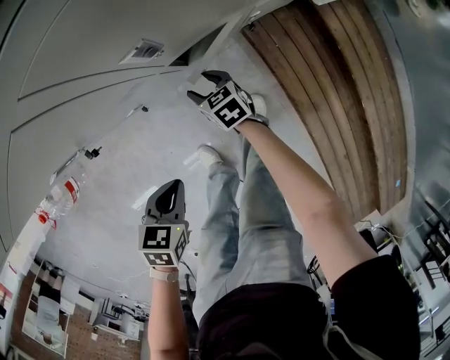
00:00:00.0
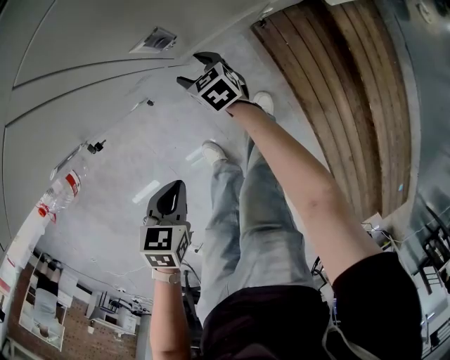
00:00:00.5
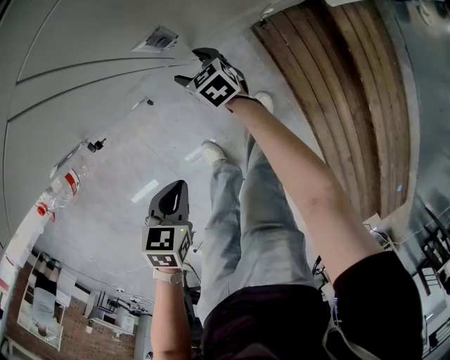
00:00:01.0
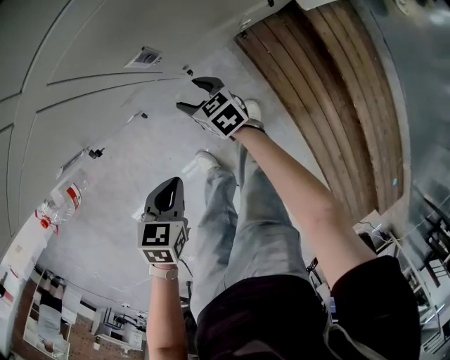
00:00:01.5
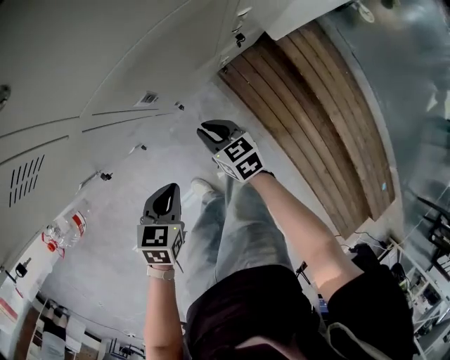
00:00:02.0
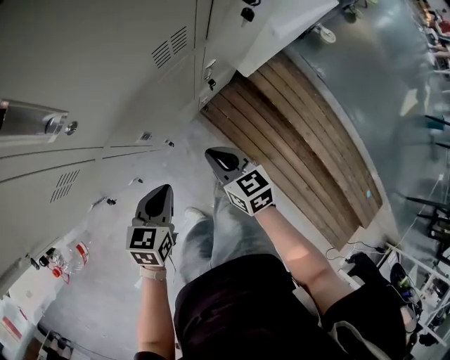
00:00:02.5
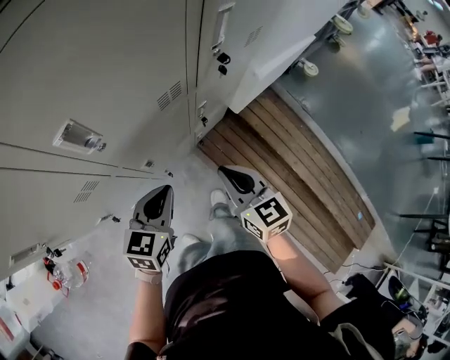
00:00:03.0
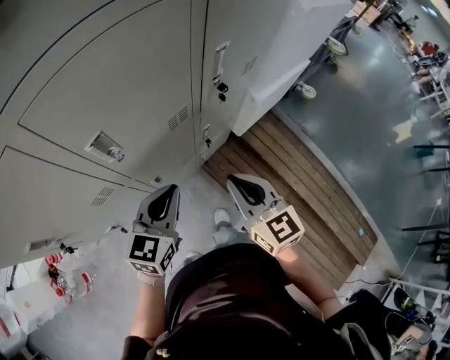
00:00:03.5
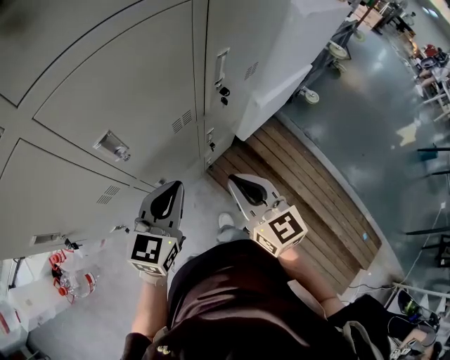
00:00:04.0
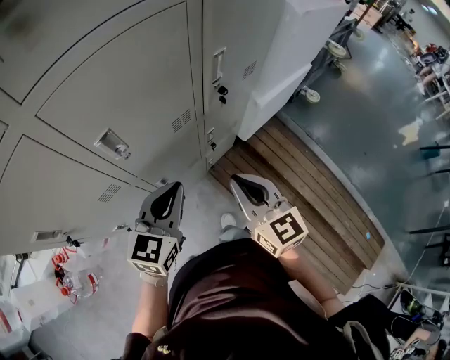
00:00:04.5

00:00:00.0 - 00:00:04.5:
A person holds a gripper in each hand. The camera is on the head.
00:00:00.0 - 00:00:02.0: The right gripper moves upward, roughly 15 cm, and closes, while the left gripper travels upward and forward by approximately 10 cm.
00:00:02.0 - 00:00:04.5: The grippers both shift upward by some 40 cm. The right gripper turns by about 40 degrees. The left gripper points its fingers roughly 40 degrees further upward.

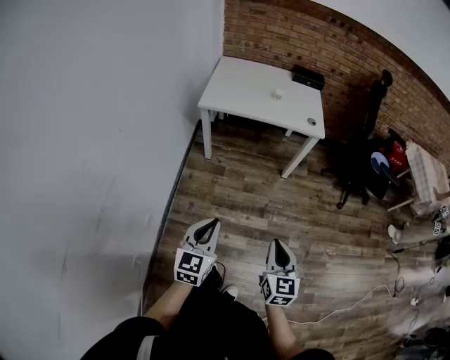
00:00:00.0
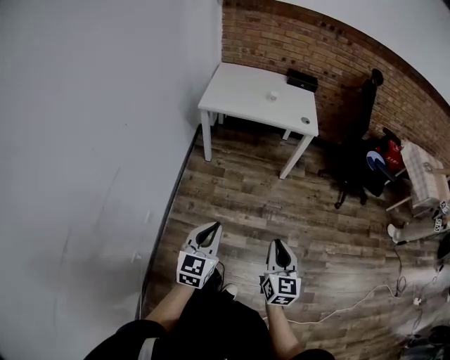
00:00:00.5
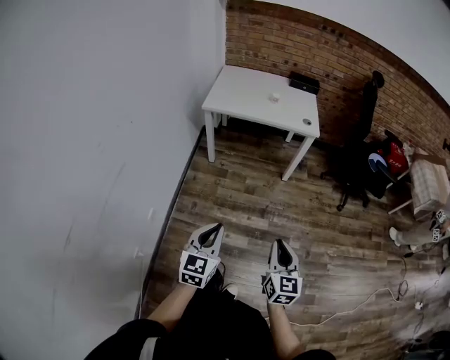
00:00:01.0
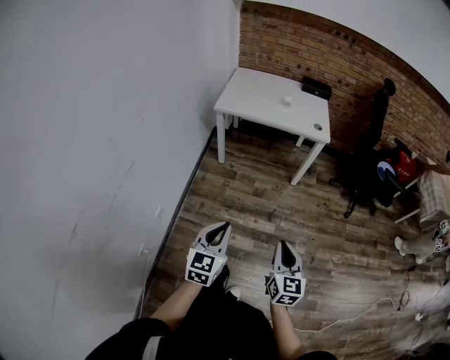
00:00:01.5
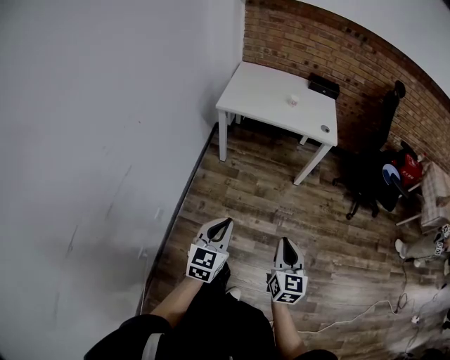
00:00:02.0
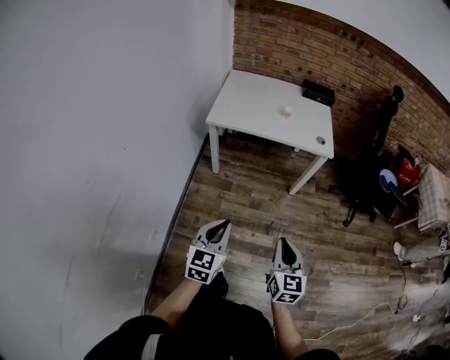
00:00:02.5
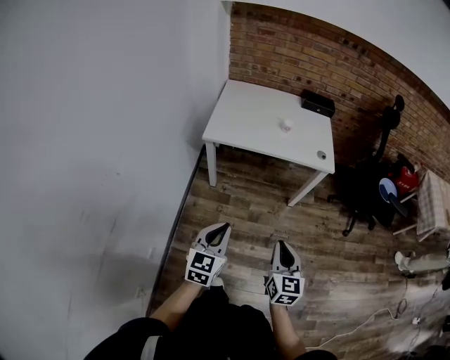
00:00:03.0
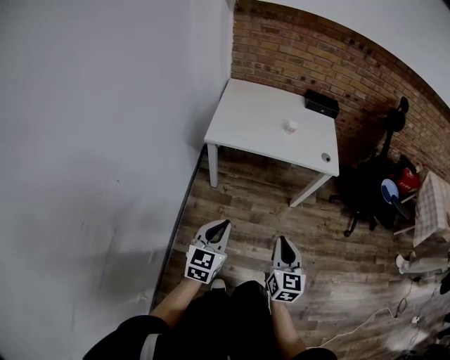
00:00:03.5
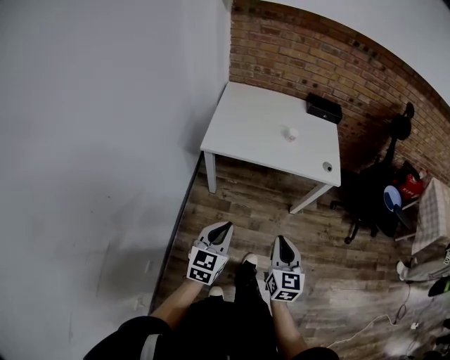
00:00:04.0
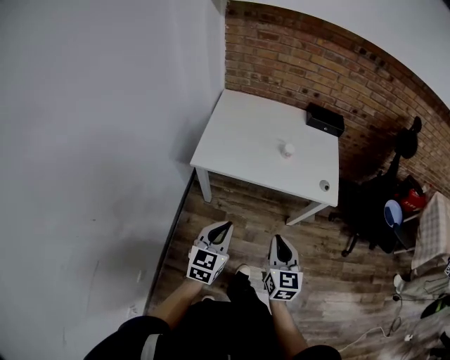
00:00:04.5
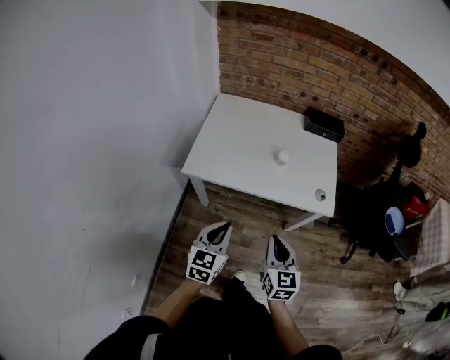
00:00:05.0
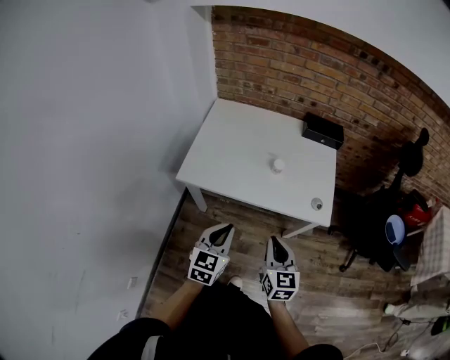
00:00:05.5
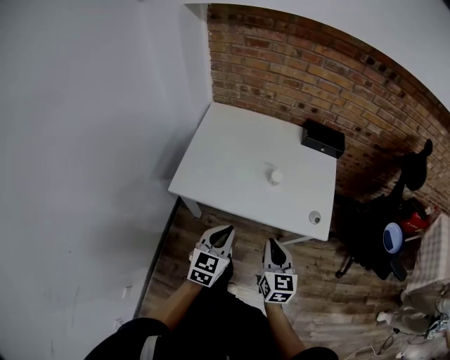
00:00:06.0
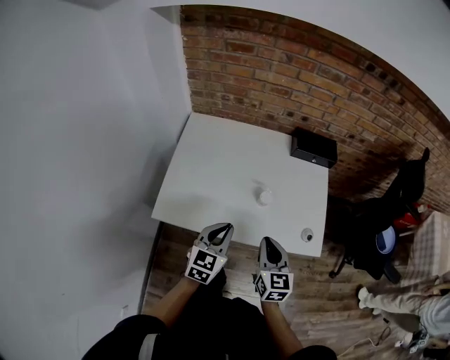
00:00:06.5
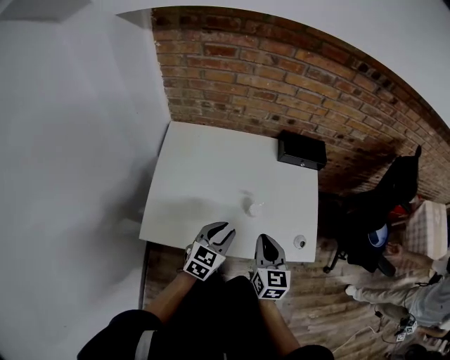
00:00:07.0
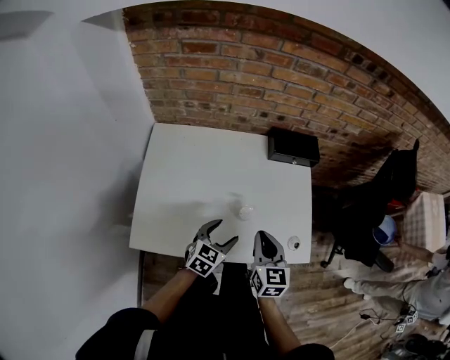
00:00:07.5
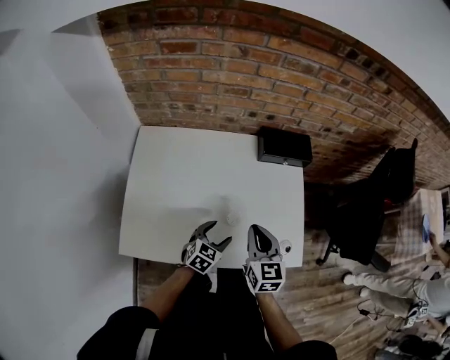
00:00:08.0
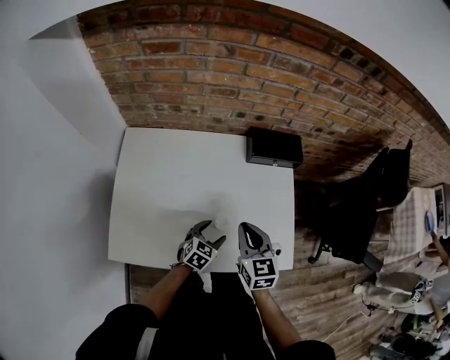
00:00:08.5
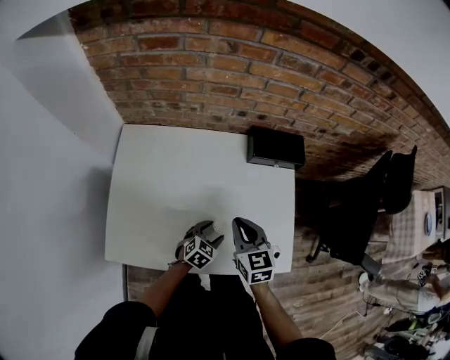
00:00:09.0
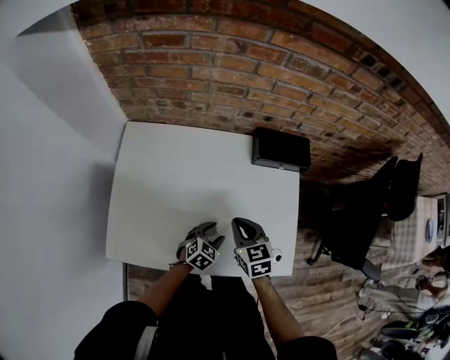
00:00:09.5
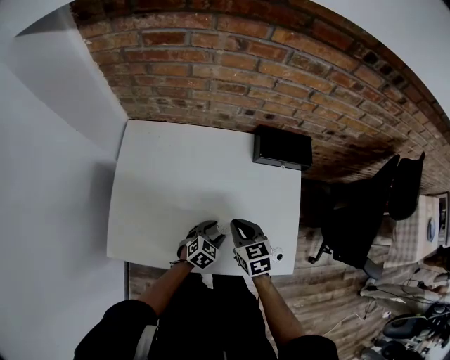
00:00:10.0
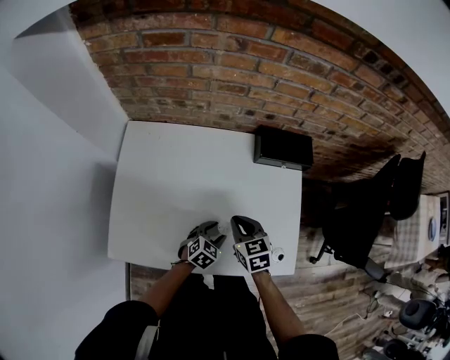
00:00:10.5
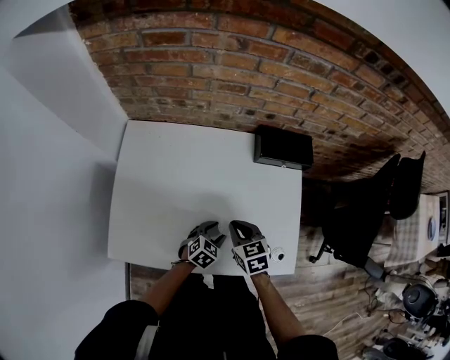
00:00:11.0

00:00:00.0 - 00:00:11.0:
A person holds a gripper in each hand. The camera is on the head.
00:00:00.0 - 00:00:02.0: The left gripper goes backward and returns, roughly 10 cm each way, while the right gripper travels backward and back again, roughly 10 cm each way.
00:00:02.0 - 00:00:03.5: The two grippers go some 25 cm forward.
00:00:03.5 - 00:00:05.5: The left gripper travels forward and to the right by some 30 cm; the right gripper travels forward by roughly 30 cm.
00:00:05.5 - 00:00:07.5: The grippers both shift forward by approximately 30 cm. The left gripper rotates roughly 30 degrees, and opens.
00:00:07.5 - 00:00:09.0: The left gripper moves downward and forward, some 15 cm. The right gripper moves forward, about 10 cm.
00:00:09.0 - 00:00:11.0: The right gripper is displaced downward by roughly 10 cm.

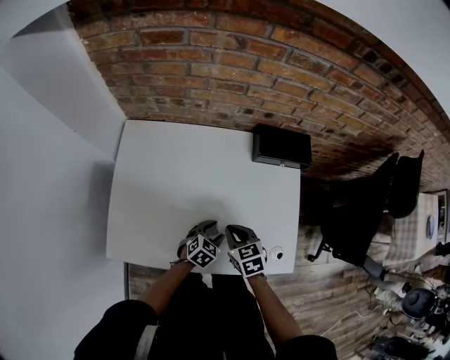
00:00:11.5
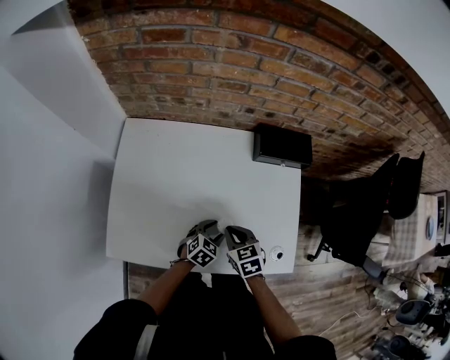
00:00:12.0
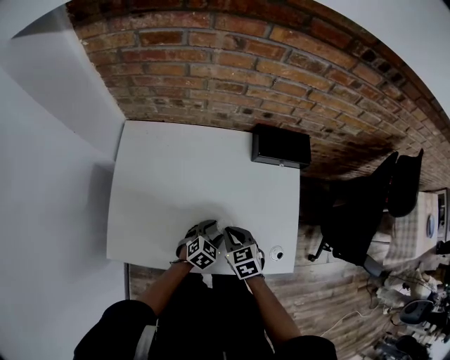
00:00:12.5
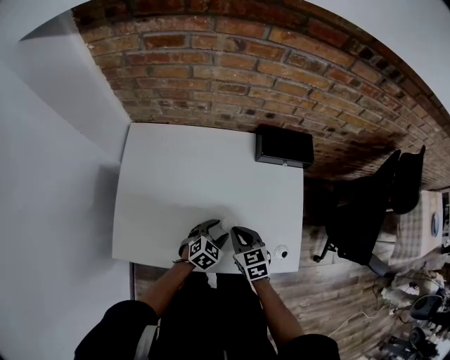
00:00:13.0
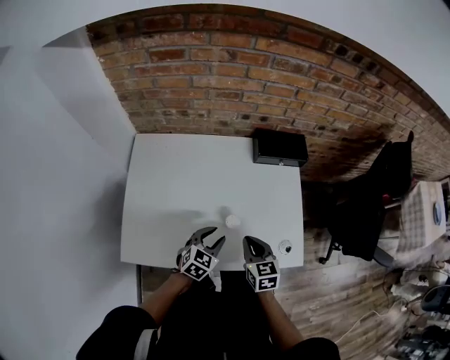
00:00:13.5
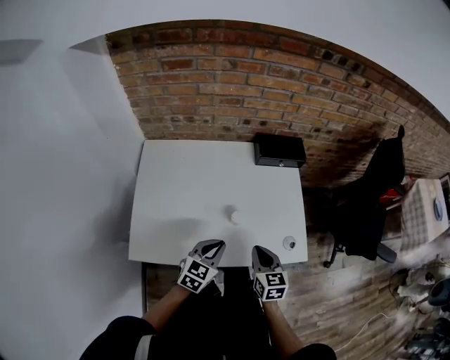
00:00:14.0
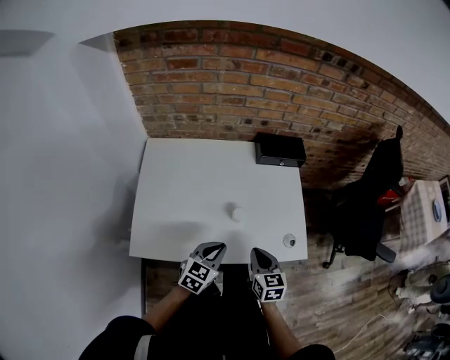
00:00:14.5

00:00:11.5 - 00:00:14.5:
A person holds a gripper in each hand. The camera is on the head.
00:00:11.5 - 00:00:13.0: The grippers make only small movements.
00:00:13.0 - 00:00:14.5: The right gripper travels backward, to the right and upward by about 15 cm, and turns by about 20 degrees. Meanwhile the left gripper heads backward and upward, covering some 20 cm, and closes up.

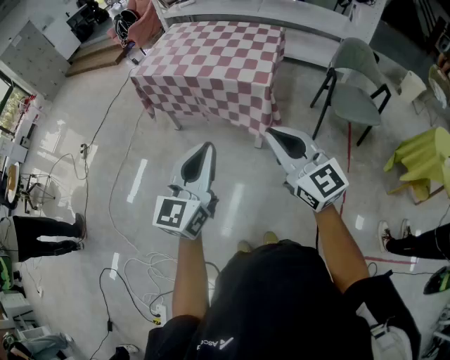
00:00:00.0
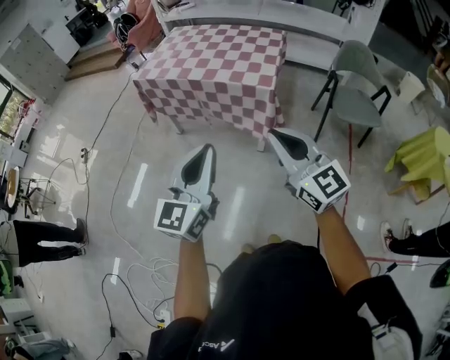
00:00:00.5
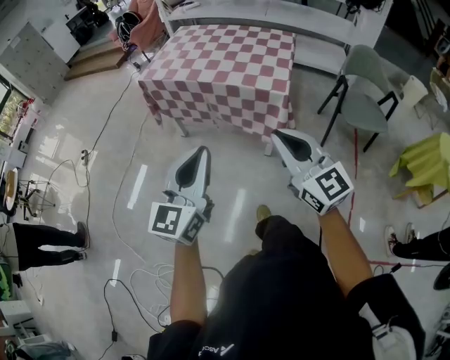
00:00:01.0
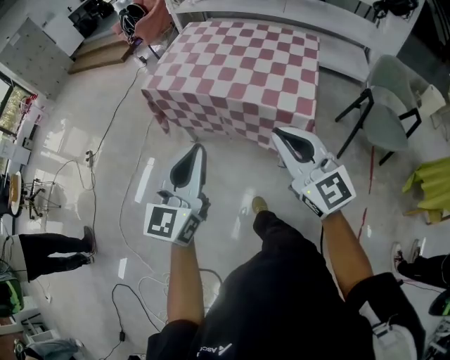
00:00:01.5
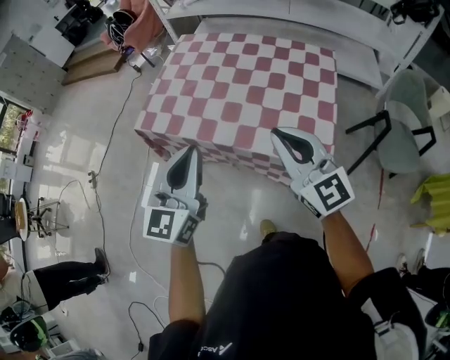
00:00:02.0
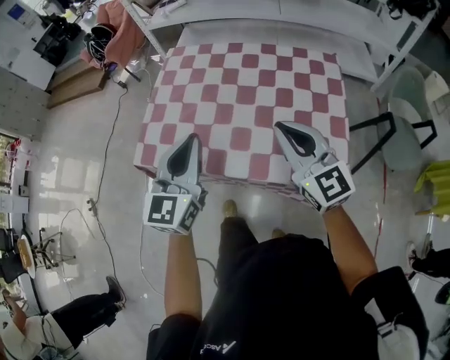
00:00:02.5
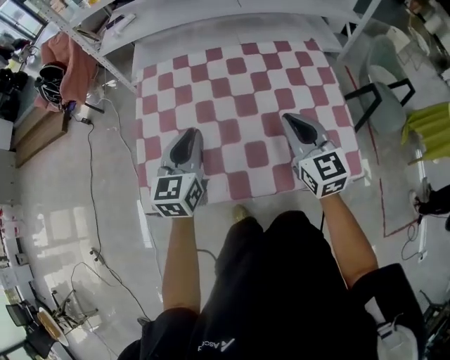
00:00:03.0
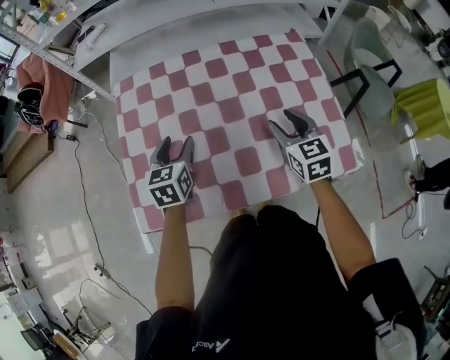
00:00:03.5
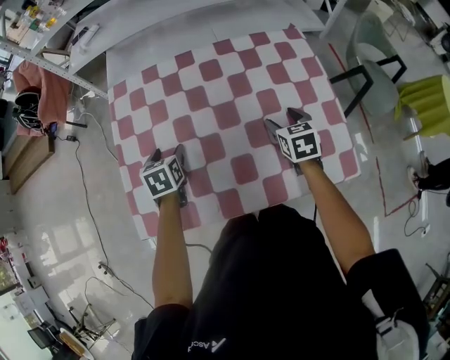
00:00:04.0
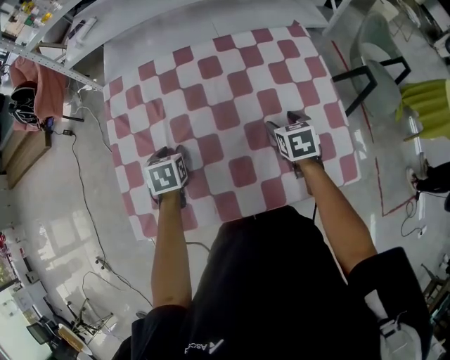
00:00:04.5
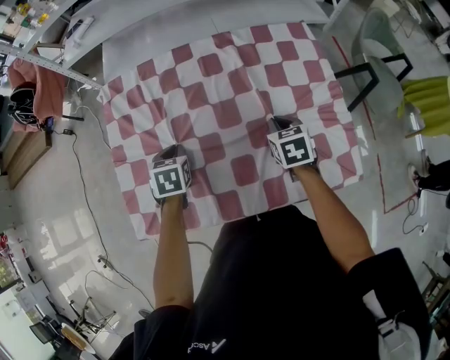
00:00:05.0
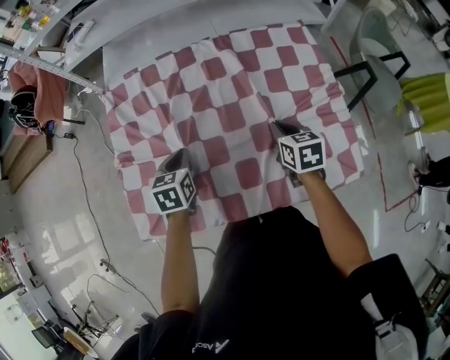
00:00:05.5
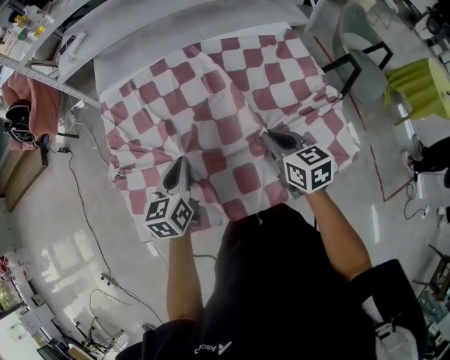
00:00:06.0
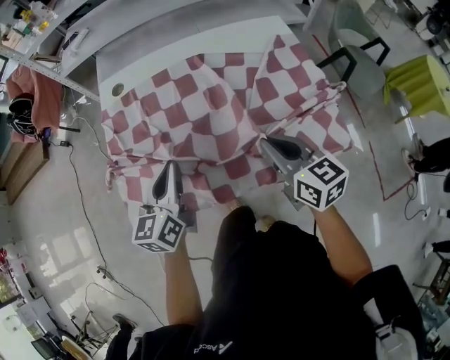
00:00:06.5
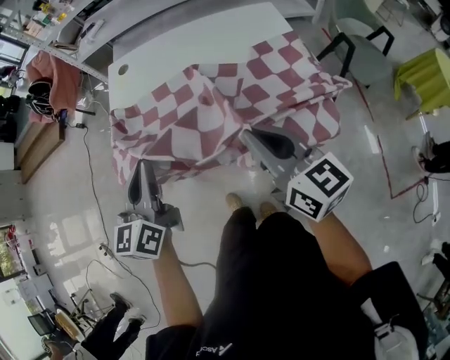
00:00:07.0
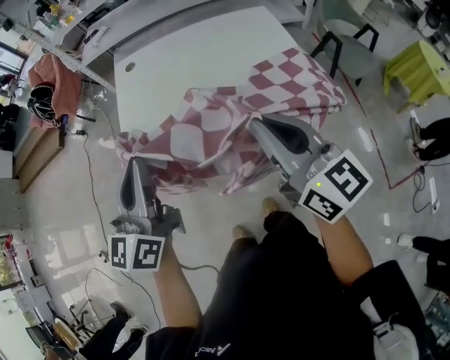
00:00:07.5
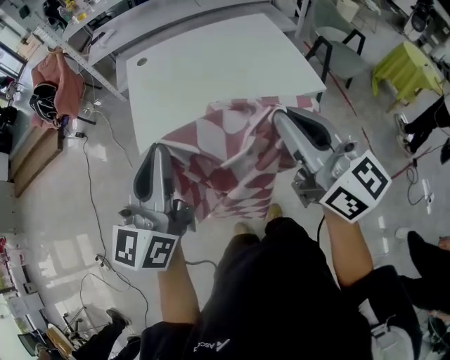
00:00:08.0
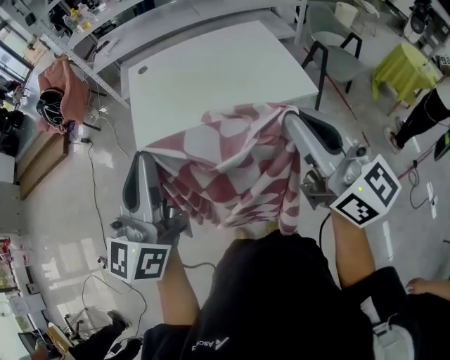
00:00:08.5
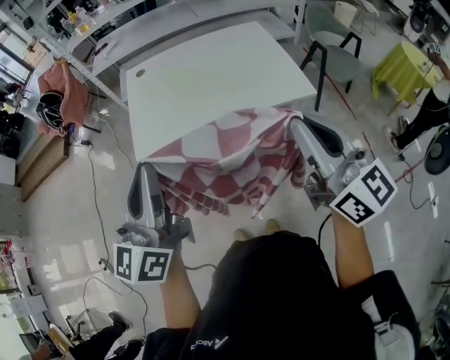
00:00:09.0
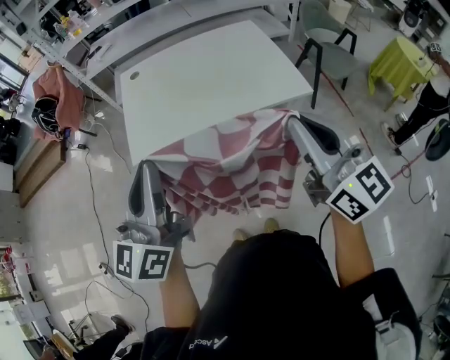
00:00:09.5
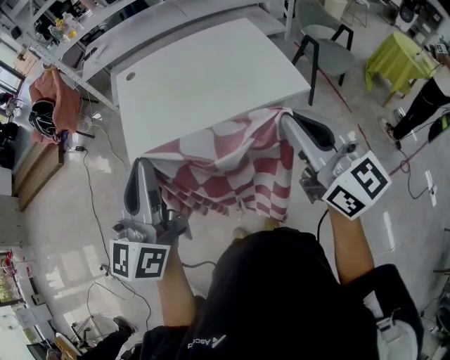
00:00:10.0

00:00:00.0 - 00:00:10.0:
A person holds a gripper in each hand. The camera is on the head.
00:00:00.0 - 00:00:02.0: The two grippers travel together, forward, approximately 50 cm.
00:00:02.0 - 00:00:04.0: The right gripper moves approximately 40 cm, tilts its fingers some 50 degrees downward, and opens its fingers. Meanwhile the left gripper shifts by approximately 50 cm, angles its fingers downward, by approximately 50 degrees, and opens.
00:00:04.0 - 00:00:06.0: The right gripper moves backward, to the left and upward, roughly 15 cm, and closes up. The left gripper travels backward and upward by roughly 10 cm, changes its angle by some 30 degrees, and closes.
00:00:06.0 - 00:00:08.0: Both grippers are carried backward, some 40 cm. The grippers both shift upward by some 30 cm. The left gripper angles its fingers upward, by about 40 degrees. The right gripper angles its fingers upward, by approximately 40 degrees.
00:00:08.0 - 00:00:10.0: The right gripper moves to the right, roughly 10 cm.
